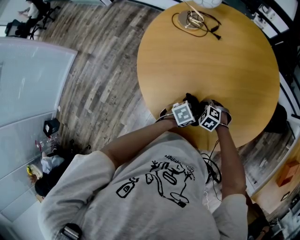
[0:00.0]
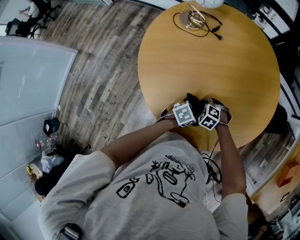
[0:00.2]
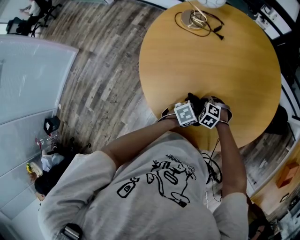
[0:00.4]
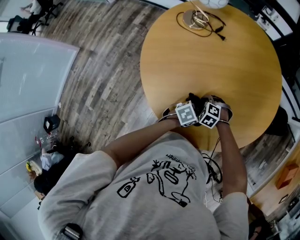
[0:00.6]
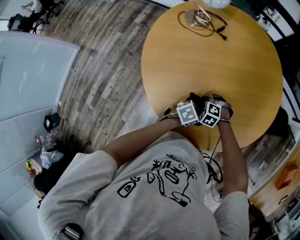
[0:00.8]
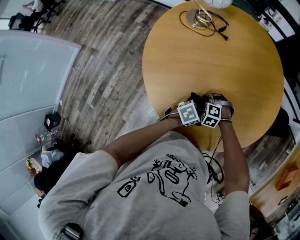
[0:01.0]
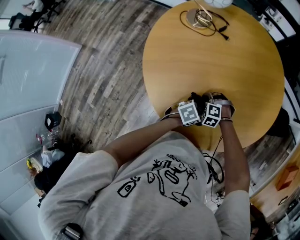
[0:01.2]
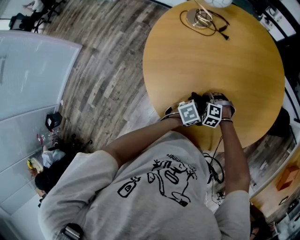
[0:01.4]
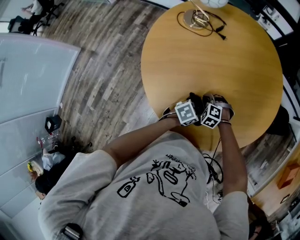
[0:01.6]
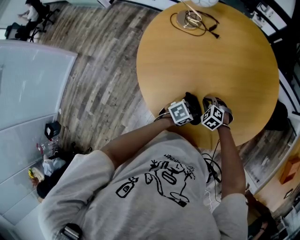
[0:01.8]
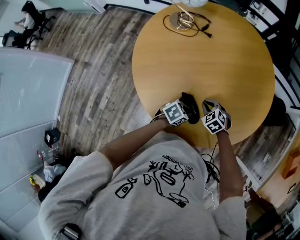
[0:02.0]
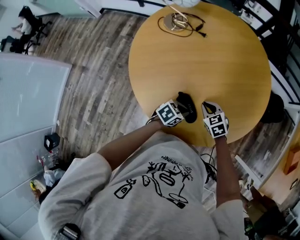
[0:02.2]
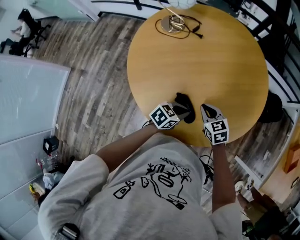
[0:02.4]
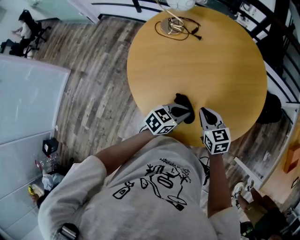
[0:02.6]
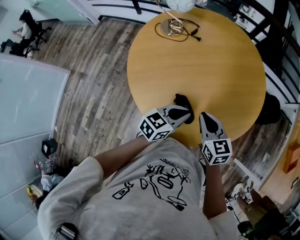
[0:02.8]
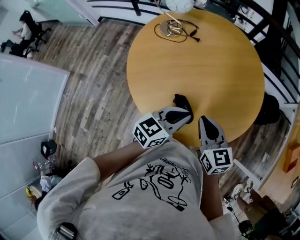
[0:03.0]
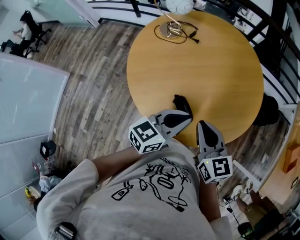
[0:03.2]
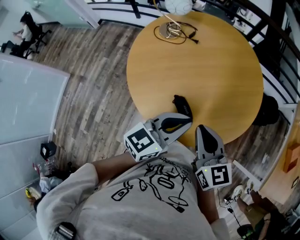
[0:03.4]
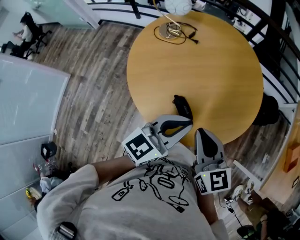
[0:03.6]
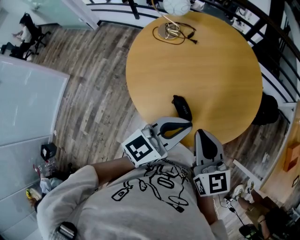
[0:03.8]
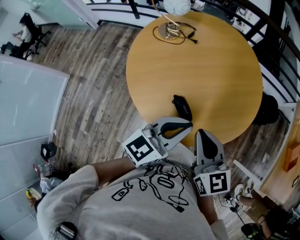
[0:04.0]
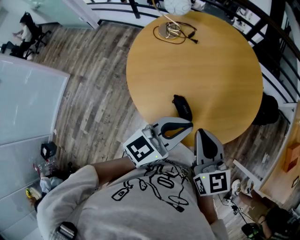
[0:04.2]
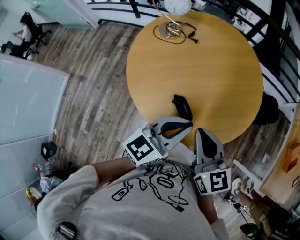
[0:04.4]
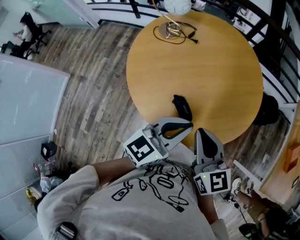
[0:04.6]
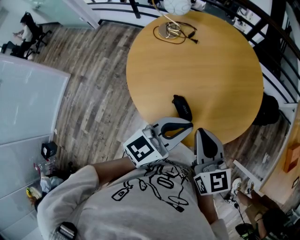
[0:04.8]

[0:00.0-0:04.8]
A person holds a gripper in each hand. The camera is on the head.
0:01.6 to 0:03.2: Both grippers move upward, roughly 30 cm. The left gripper points its fingers roughly 40 degrees further upward; the right gripper tilts its fingers about 50 degrees upward.
0:03.2 to 0:04.8: The left gripper is displaced upward by some 5 cm.

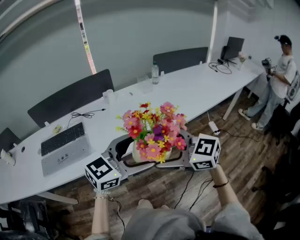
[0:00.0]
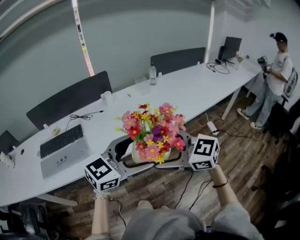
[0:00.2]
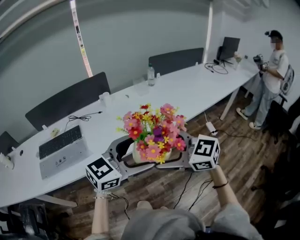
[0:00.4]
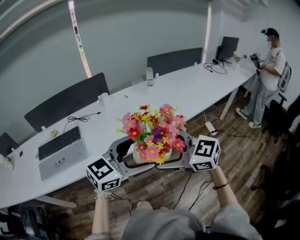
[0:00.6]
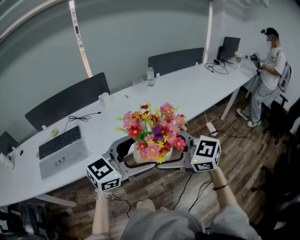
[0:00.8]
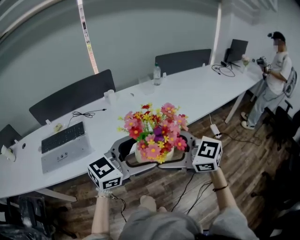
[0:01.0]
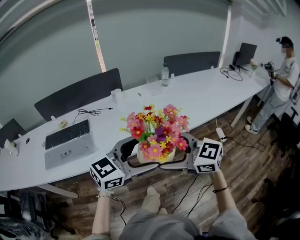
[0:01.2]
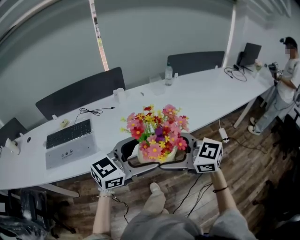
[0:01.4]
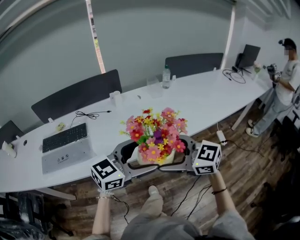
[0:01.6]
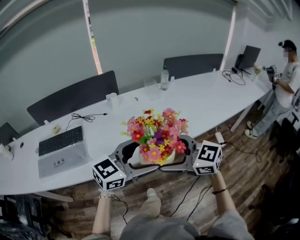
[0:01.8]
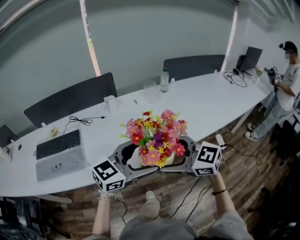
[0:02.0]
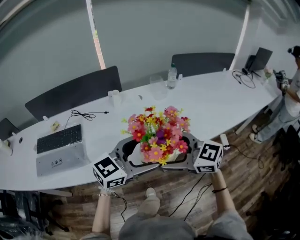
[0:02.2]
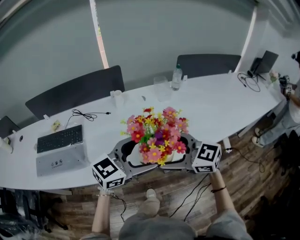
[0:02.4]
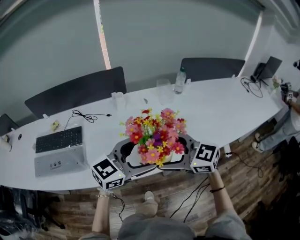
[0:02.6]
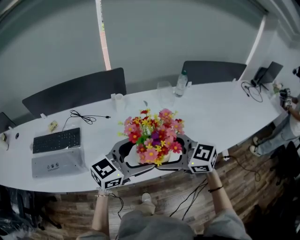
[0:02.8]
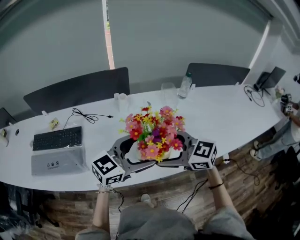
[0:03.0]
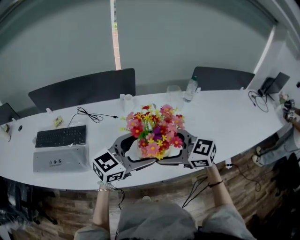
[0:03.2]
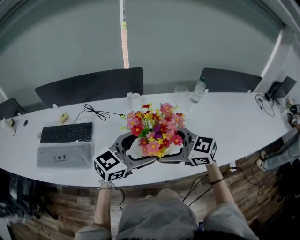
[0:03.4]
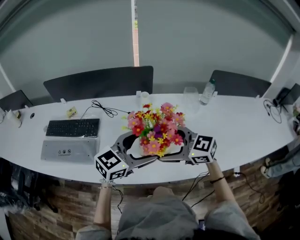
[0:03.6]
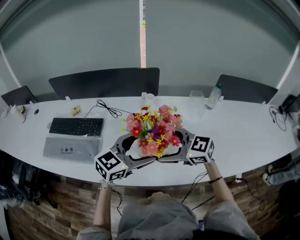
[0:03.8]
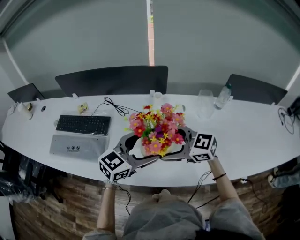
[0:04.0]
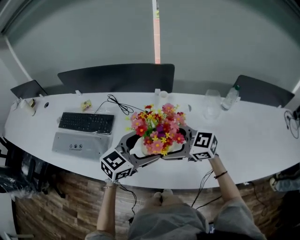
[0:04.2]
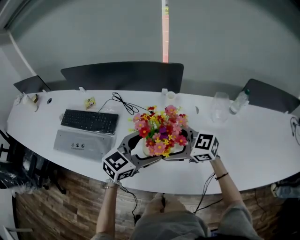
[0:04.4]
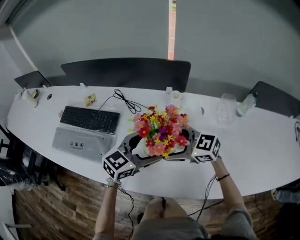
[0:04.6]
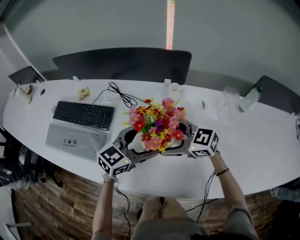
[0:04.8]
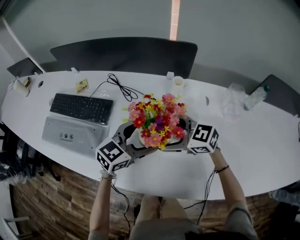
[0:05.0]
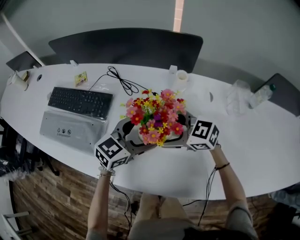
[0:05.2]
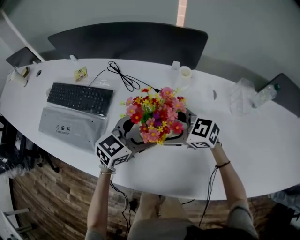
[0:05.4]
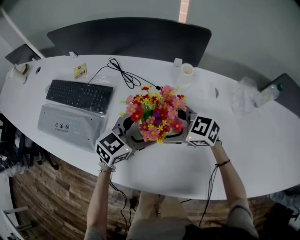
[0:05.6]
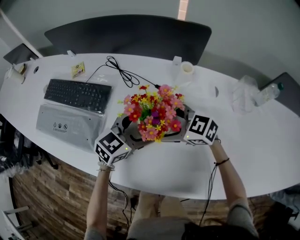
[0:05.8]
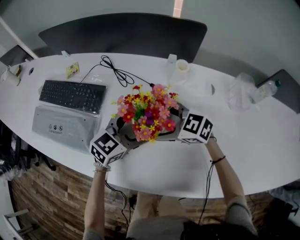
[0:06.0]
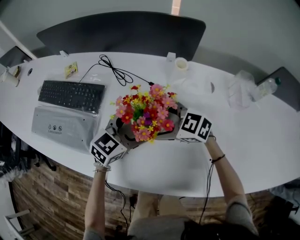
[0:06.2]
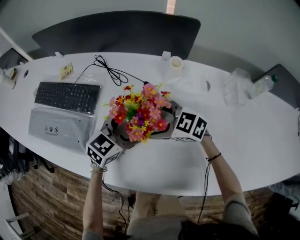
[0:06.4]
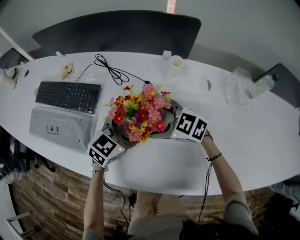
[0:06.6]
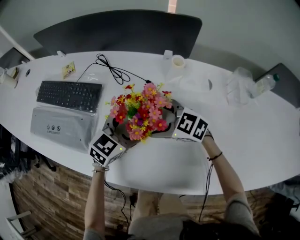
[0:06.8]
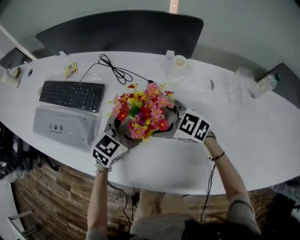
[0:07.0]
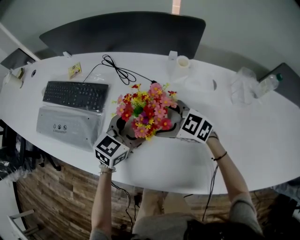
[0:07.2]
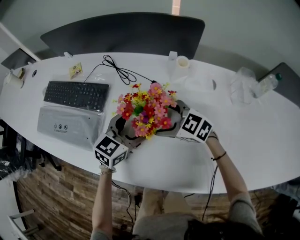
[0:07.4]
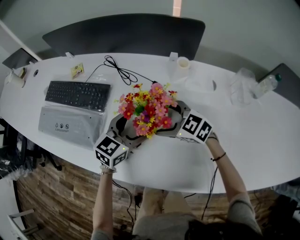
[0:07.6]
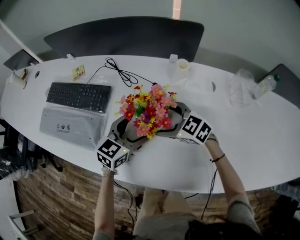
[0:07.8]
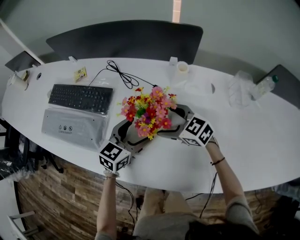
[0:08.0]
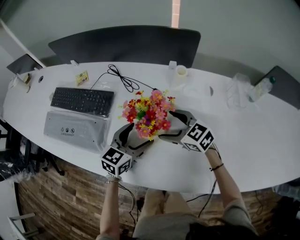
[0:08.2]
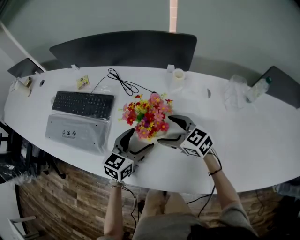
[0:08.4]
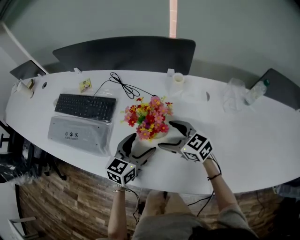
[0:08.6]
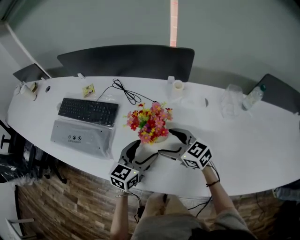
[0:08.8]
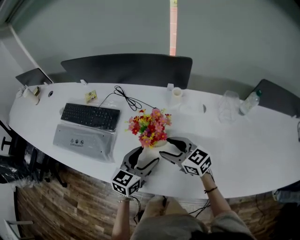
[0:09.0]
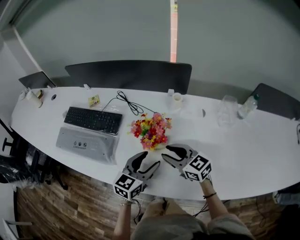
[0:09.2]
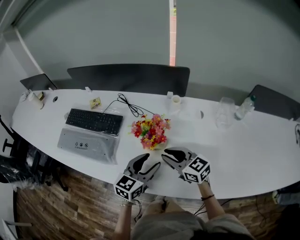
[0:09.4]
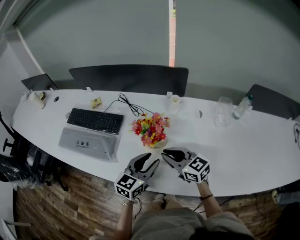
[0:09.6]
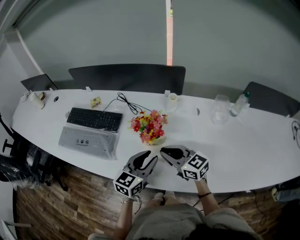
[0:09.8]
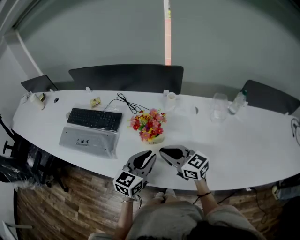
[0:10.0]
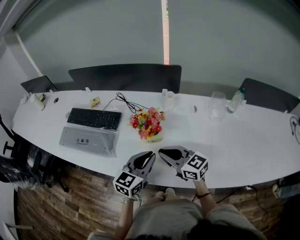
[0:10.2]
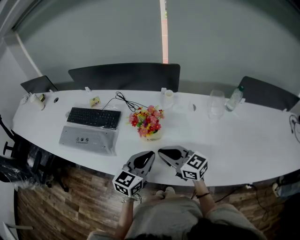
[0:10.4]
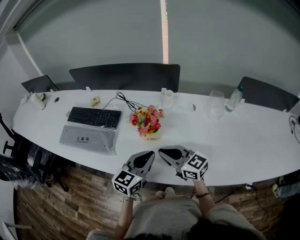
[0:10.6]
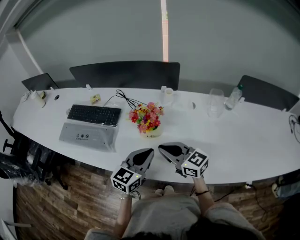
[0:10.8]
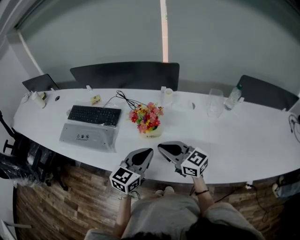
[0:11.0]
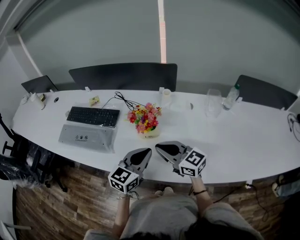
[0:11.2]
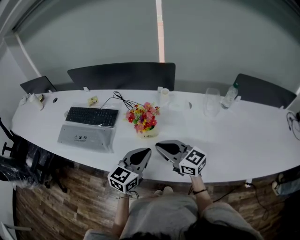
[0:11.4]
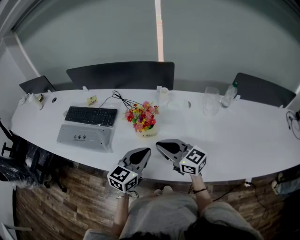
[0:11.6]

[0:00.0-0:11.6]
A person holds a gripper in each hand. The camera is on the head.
0:00.0 to 0:01.4: The grippers stay close to where they were, moving slightly.
0:01.4 to 0:02.8: The left gripper shifts by approximately 20 cm. The right gripper shifts by about 20 cm.
0:02.8 to 0:04.4: The right gripper ends up about 20 cm from where it was, and turns by about 30 degrees. The left gripper moves roughly 20 cm, and swivels some 30 degrees.
0:04.4 to 0:05.8: Both grippers travel together downward, roughly 15 cm.
0:05.8 to 0:07.2: The grippers stay close to where they were, moving slightly.
0:07.2 to 0:08.8: The left gripper travels backward by approximately 5 cm. Meanwhile the right gripper moves approximately 5 cm, and changes its angle by about 20 degrees.
0:08.8 to 0:10.2: Both grippers move upward and backward, some 10 cm. The right gripper closes its fingers, while the left gripper closes up.
0:10.2 to 0:11.6: There are only small adjustments of the grippers.

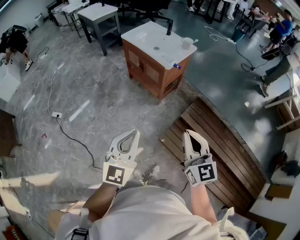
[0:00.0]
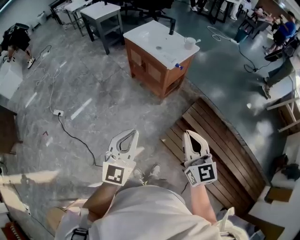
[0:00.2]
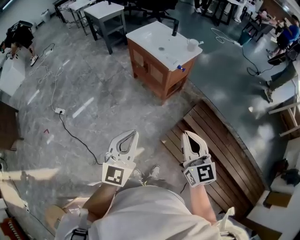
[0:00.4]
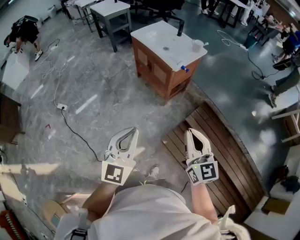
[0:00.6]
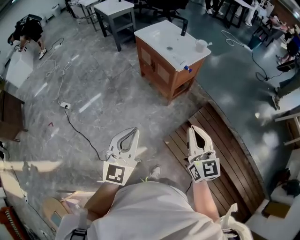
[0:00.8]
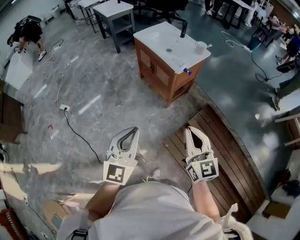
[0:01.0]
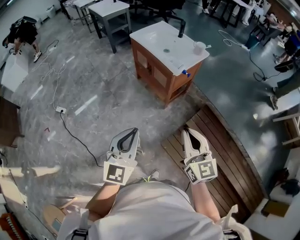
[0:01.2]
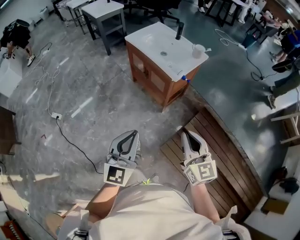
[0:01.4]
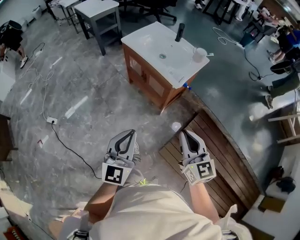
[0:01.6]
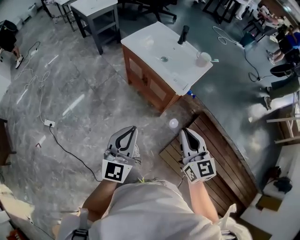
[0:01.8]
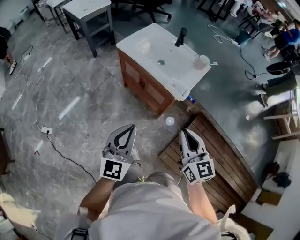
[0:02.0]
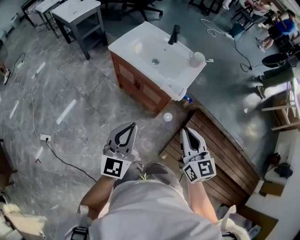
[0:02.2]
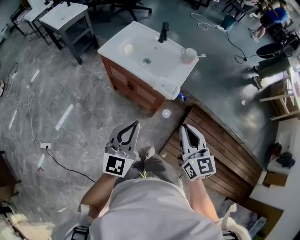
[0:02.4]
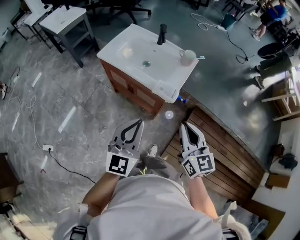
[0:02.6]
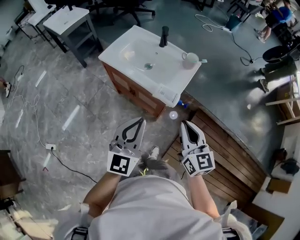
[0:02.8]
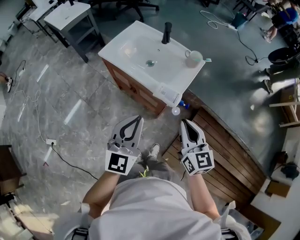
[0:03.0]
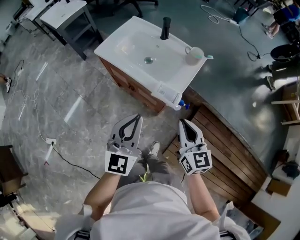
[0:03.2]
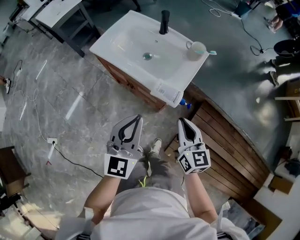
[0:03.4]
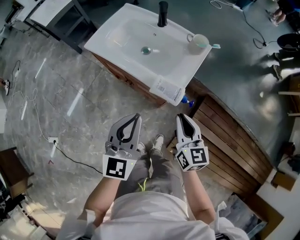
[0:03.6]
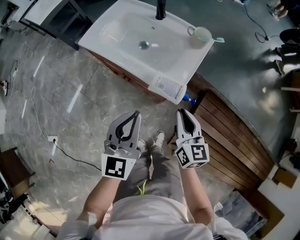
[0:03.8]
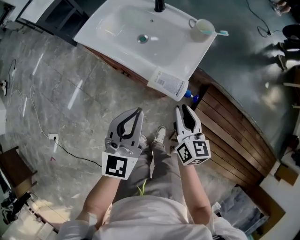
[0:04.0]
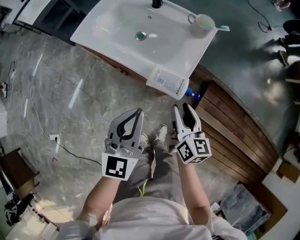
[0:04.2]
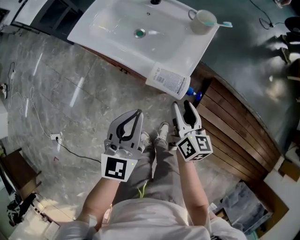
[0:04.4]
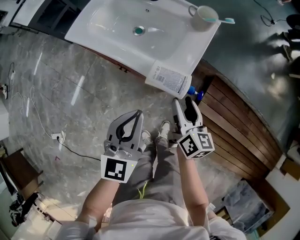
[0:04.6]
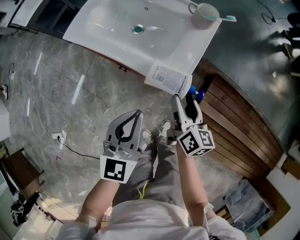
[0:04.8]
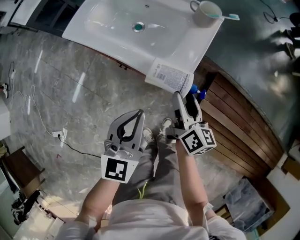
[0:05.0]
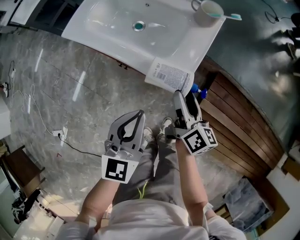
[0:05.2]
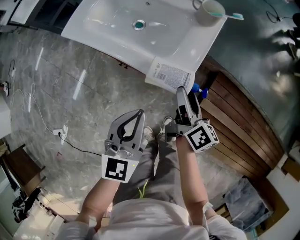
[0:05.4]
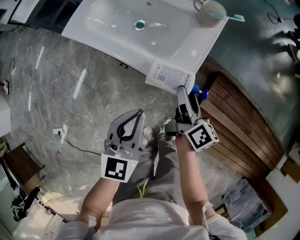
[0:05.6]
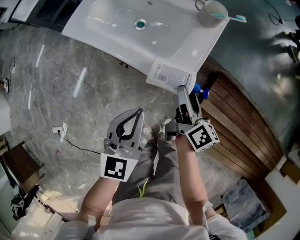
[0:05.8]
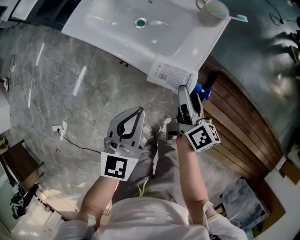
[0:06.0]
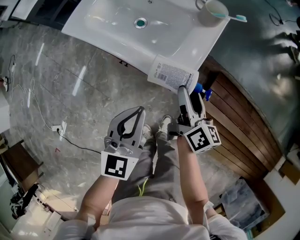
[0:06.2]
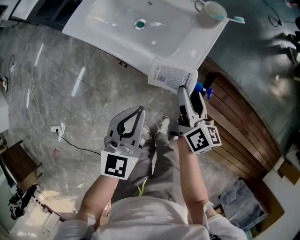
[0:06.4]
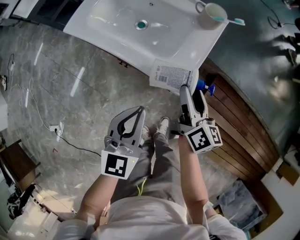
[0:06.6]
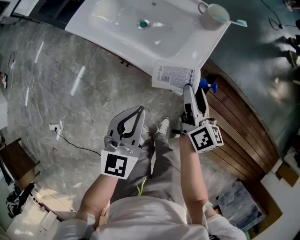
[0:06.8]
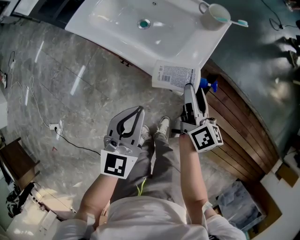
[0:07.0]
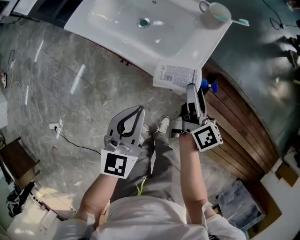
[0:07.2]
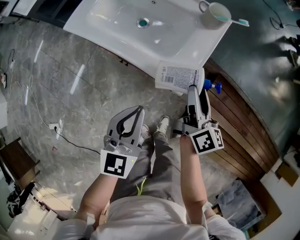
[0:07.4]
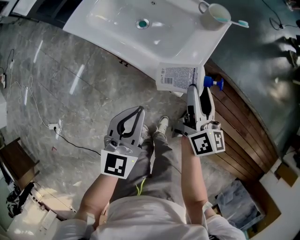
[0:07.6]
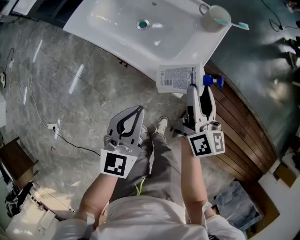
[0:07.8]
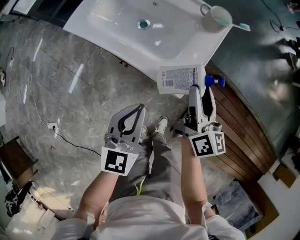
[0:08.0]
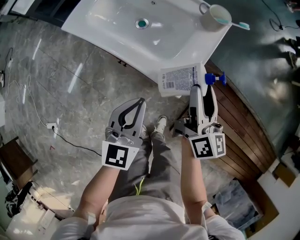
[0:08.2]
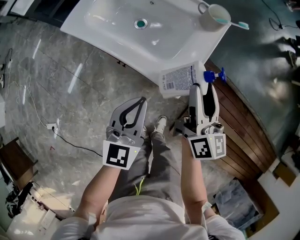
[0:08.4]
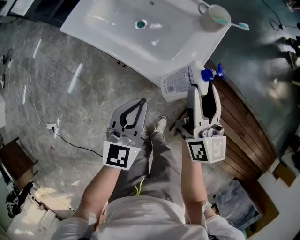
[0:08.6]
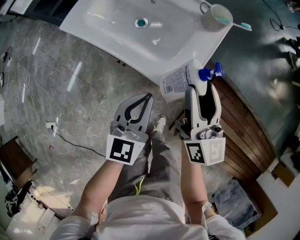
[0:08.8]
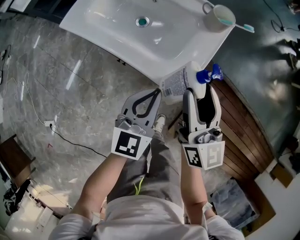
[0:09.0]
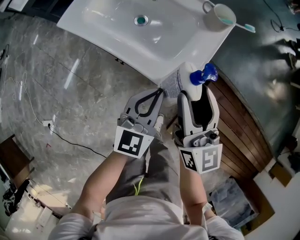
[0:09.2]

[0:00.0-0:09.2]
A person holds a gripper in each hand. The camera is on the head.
0:00.0 to 0:01.6: Both grippers travel together forward, some 25 cm.
0:01.6 to 0:03.0: Both grippers move forward, about 25 cm.
0:03.0 to 0:04.6: The grippers both shift downward and forward by roughly 25 cm. The right gripper rotates roughly 30 degrees, and opens up.
0:06.2 to 0:07.6: There are only small adjustments of the grippers.
0:07.6 to 0:09.2: The left gripper moves forward, approximately 5 cm, while the right gripper goes some 5 cm upward, and turns by approximately 30 degrees.
